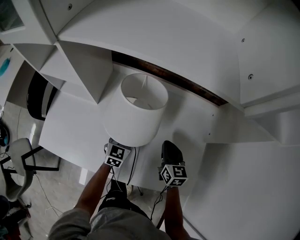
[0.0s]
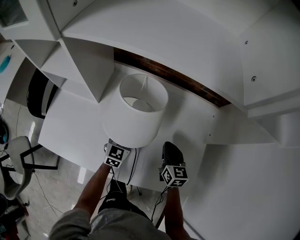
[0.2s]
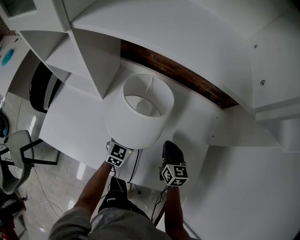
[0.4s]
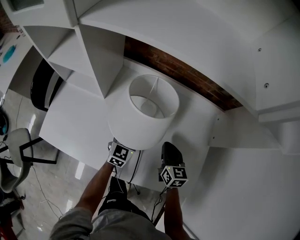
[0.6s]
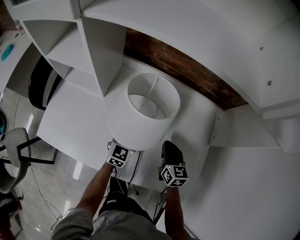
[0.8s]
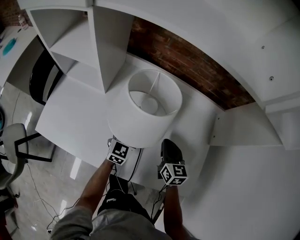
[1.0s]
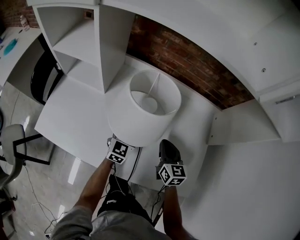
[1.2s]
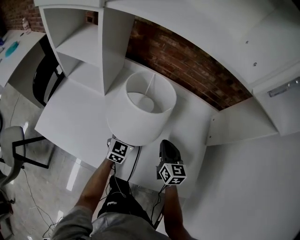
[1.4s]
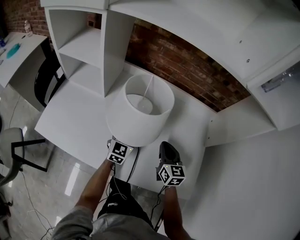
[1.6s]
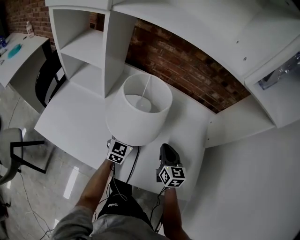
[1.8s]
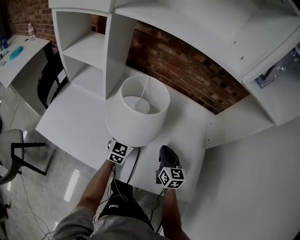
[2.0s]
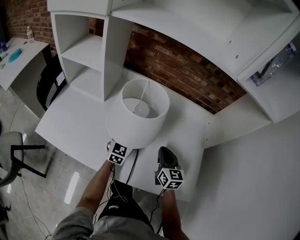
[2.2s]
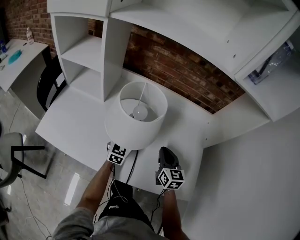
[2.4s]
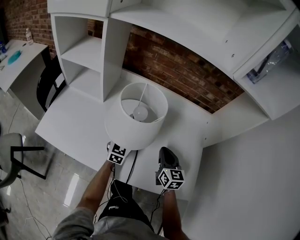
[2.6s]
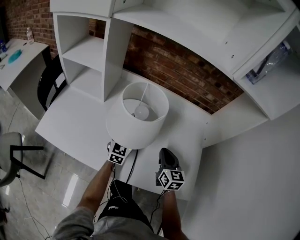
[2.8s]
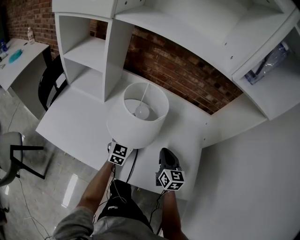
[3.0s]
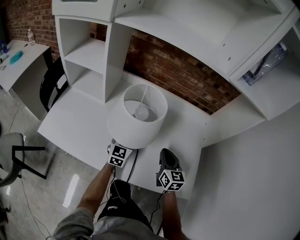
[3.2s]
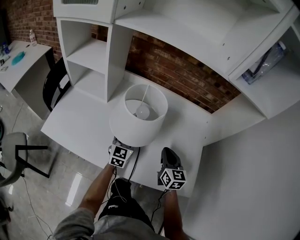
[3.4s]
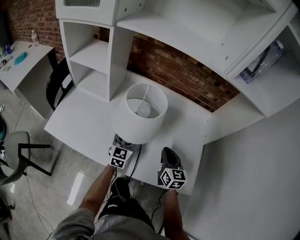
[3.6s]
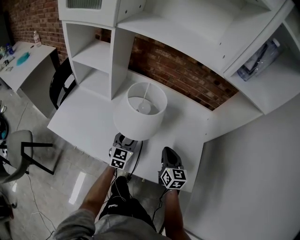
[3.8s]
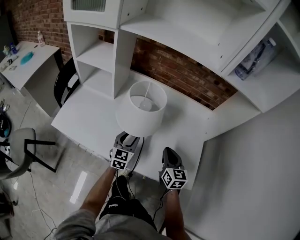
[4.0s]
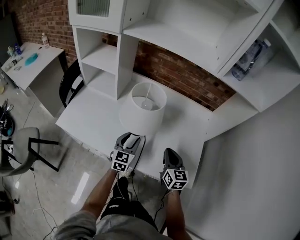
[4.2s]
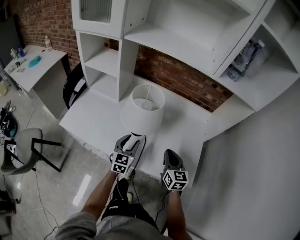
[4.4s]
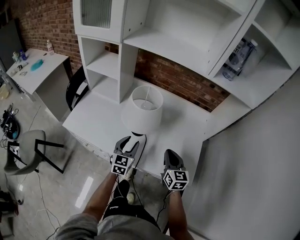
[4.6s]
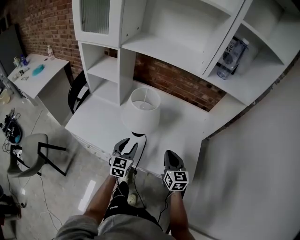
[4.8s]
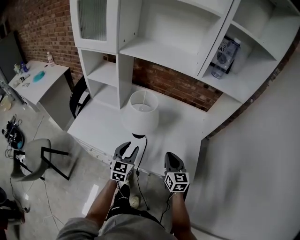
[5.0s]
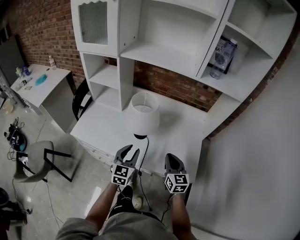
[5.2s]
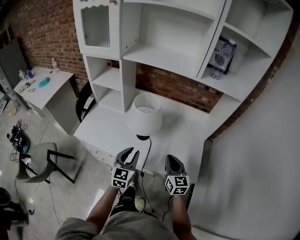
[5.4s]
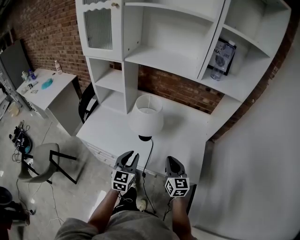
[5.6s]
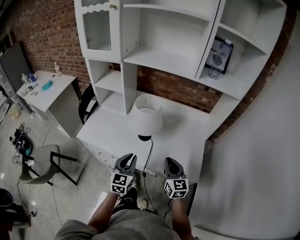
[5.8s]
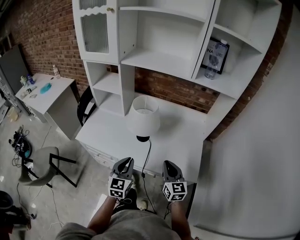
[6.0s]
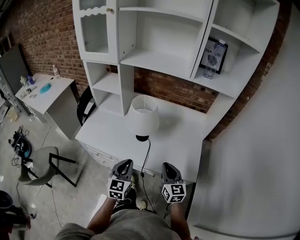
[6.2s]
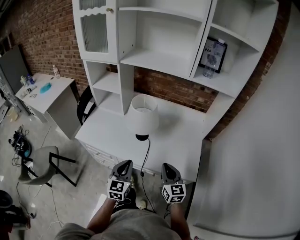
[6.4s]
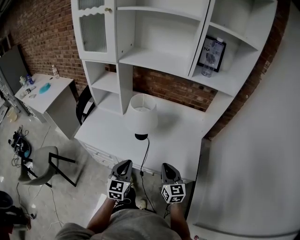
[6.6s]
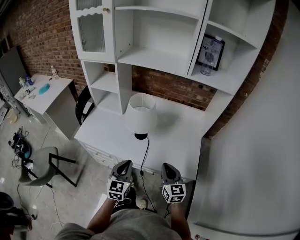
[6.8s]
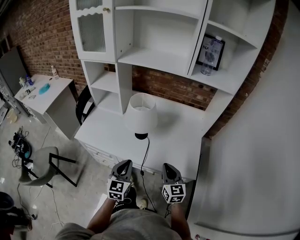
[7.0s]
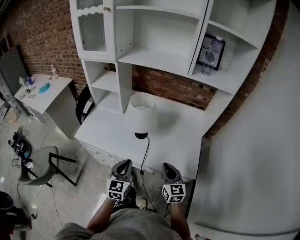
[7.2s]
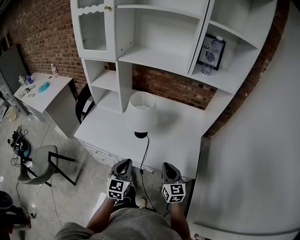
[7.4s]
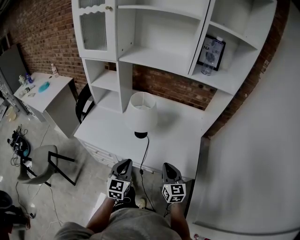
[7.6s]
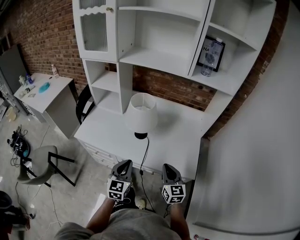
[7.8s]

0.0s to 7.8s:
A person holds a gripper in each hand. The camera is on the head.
0.0s to 1.6s: The right gripper moves about 5 cm.
1.6s to 3.2s: The grippers make only small movements.
3.2s to 4.6s: Both grippers move backward and upward, roughly 15 cm.
4.6s to 6.2s: Both grippers travel together backward and upward, about 15 cm. The left gripper closes.
6.2s to 7.8s: The grippers make only small movements.

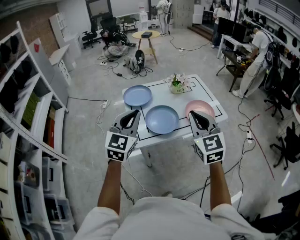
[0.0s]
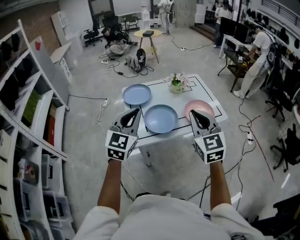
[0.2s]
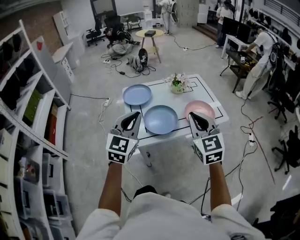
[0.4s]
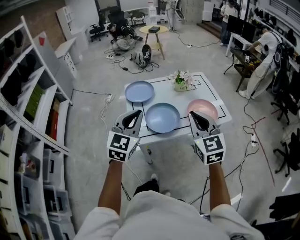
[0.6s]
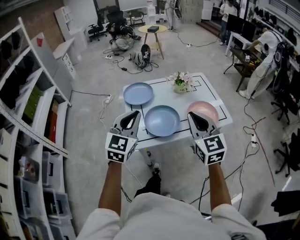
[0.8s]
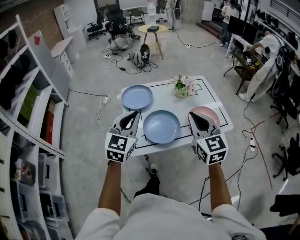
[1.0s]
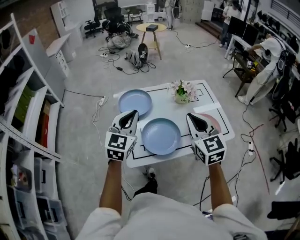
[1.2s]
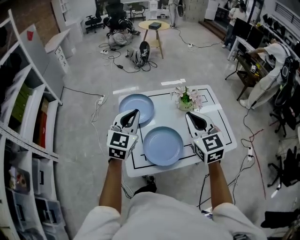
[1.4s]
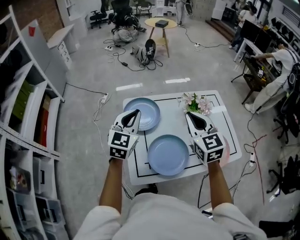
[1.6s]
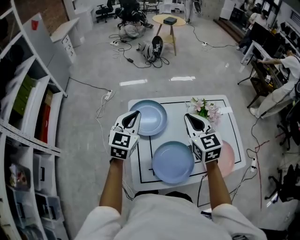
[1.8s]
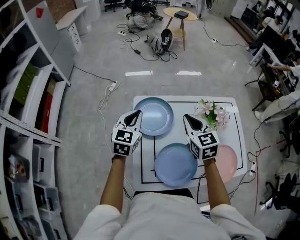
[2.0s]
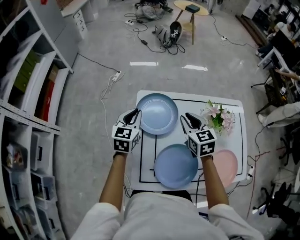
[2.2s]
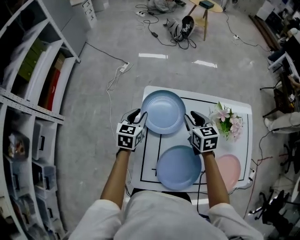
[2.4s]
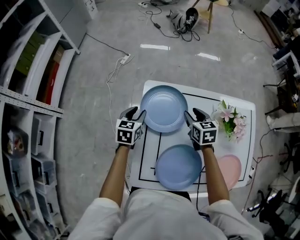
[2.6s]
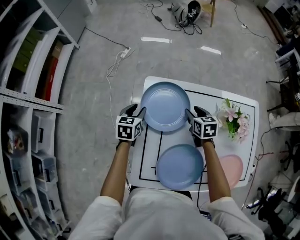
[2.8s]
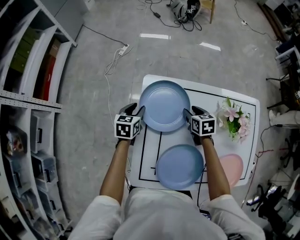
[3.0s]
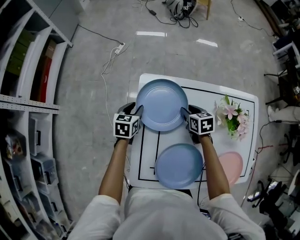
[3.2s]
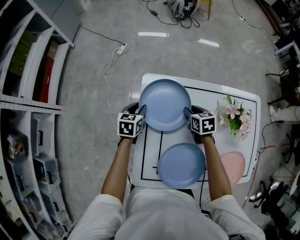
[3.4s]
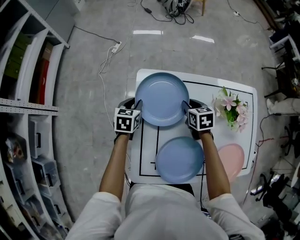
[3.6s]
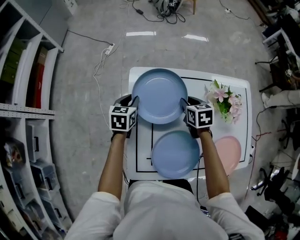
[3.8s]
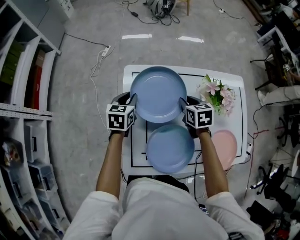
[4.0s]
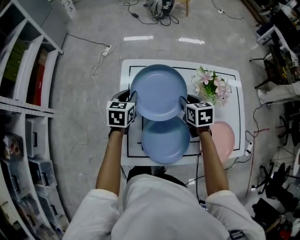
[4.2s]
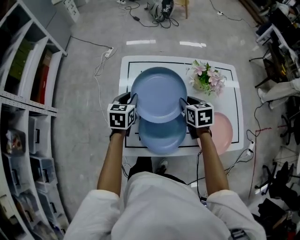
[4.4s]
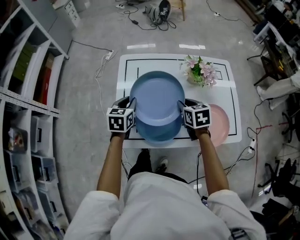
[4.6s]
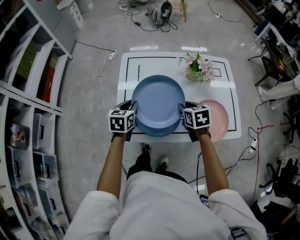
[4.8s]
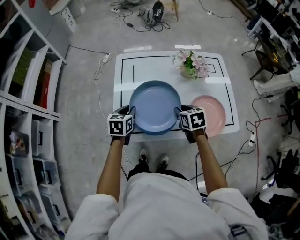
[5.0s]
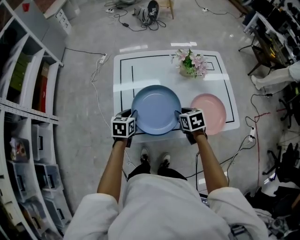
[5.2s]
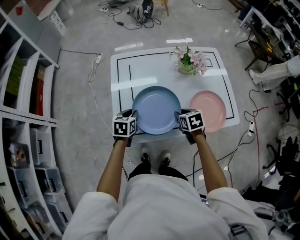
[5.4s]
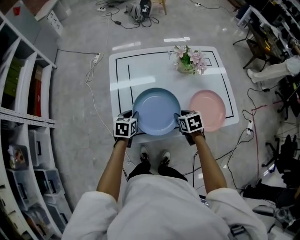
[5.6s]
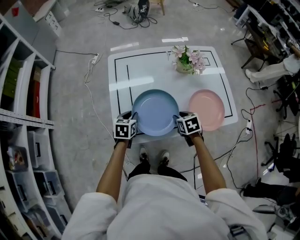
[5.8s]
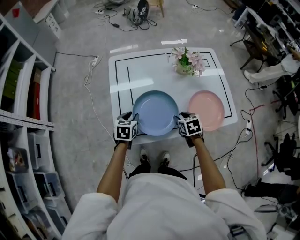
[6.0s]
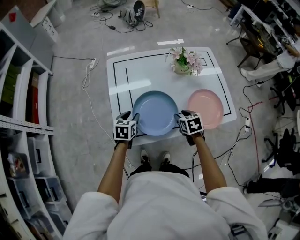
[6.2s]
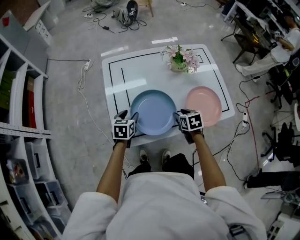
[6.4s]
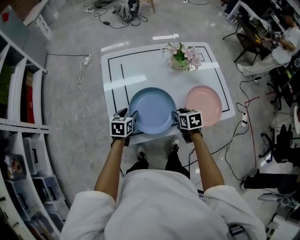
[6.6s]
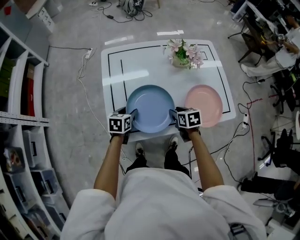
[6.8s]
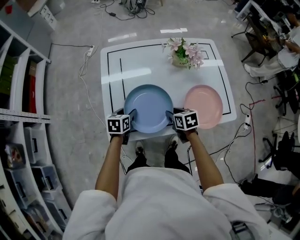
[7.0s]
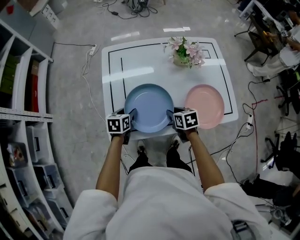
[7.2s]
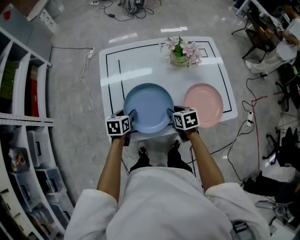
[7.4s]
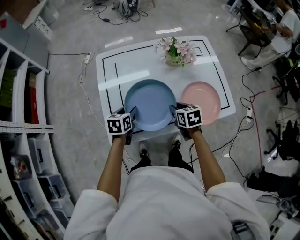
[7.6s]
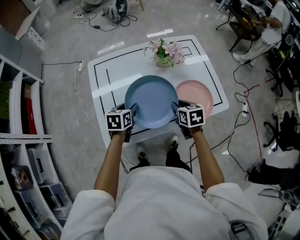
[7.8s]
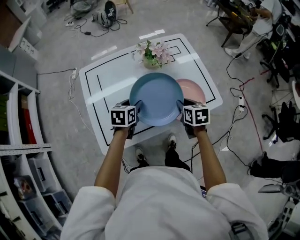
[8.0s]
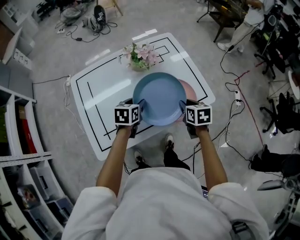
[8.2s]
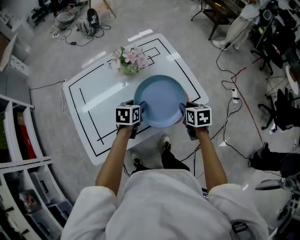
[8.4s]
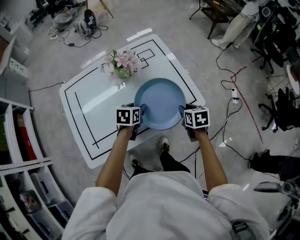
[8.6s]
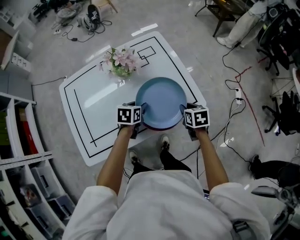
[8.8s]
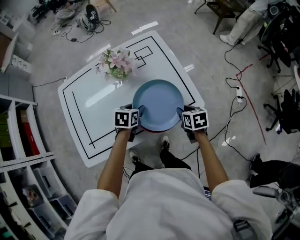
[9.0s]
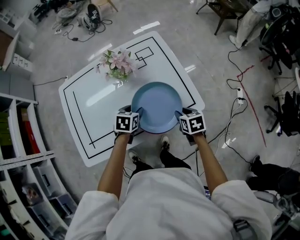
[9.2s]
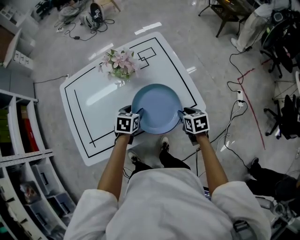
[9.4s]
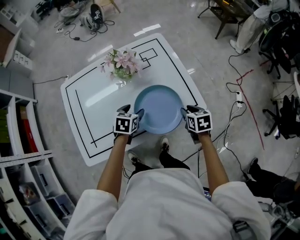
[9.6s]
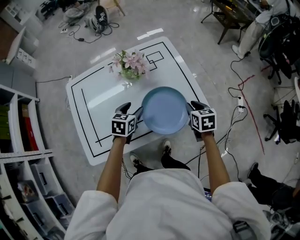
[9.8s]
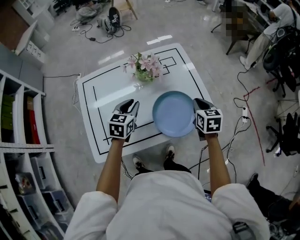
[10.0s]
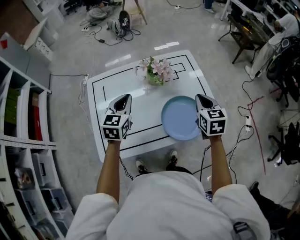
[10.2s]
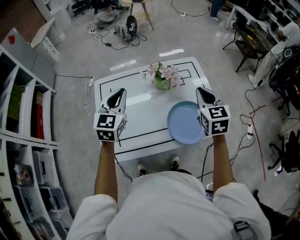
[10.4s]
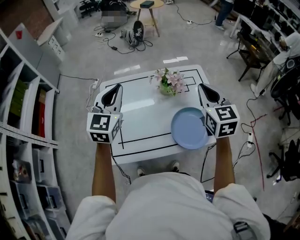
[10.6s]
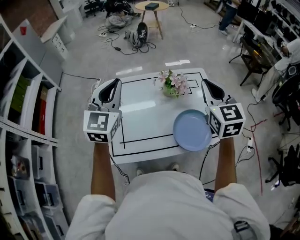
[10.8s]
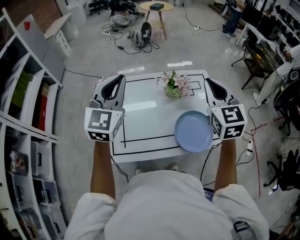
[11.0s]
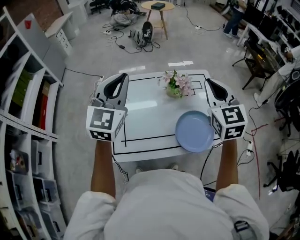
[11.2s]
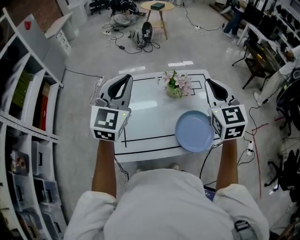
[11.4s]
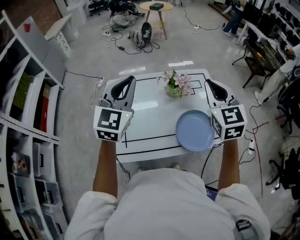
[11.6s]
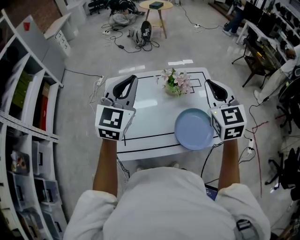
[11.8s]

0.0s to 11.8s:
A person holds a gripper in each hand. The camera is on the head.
0.0s to 1.4s: Both grippers move forward, about 30 cm.
1.4s to 3.0s: Both grippers travel together downward and forward, roughly 40 cm. The right gripper points its fingers some 40 degrees further downward, and opens. The left gripper tips its fingers downward by about 30 degrees, and opens.
3.0s to 4.4s: The two grippers go roughly 20 cm backward, upward and to the right. The right gripper closes up.
4.4s to 6.0s: The two grippers go approximately 20 cm backward and downward.
6.0s to 7.4s: The grippers make only small movements.
7.4s to 8.8s: The left gripper reaches about 10 cm upward, then returns, and rotates about 20 degrees. The right gripper reaches roughly 10 cm upward, then returns, and changes its angle by about 20 degrees.
8.8s to 10.4s: The grippers both shift upward and to the left by about 35 cm. The right gripper rotates about 40 degrees, and closes. Meanwhile the left gripper points its fingers approximately 40 degrees further upward, and closes up.
10.4s to 11.8s: The left gripper moves upward, roughly 10 cm. The right gripper heads upward and to the left, covering some 10 cm.

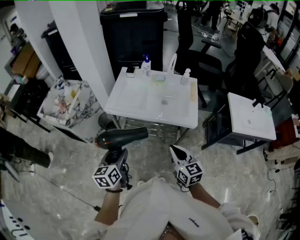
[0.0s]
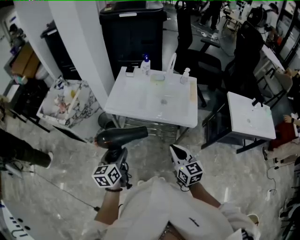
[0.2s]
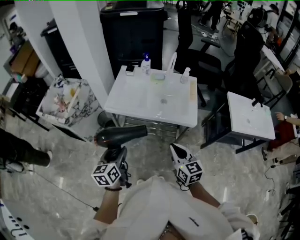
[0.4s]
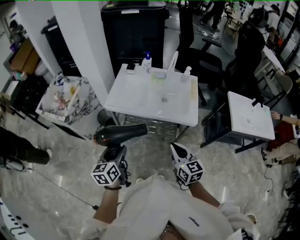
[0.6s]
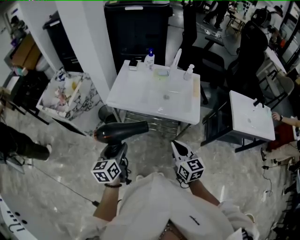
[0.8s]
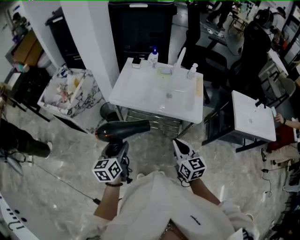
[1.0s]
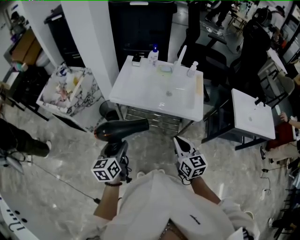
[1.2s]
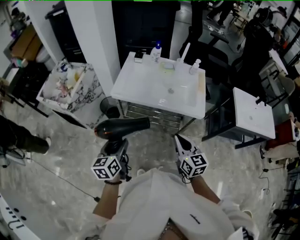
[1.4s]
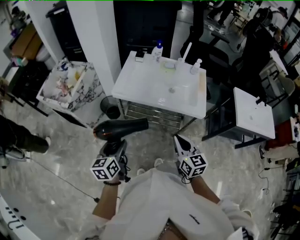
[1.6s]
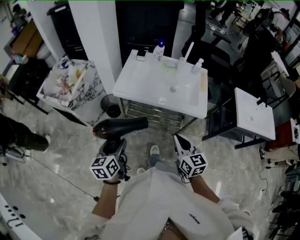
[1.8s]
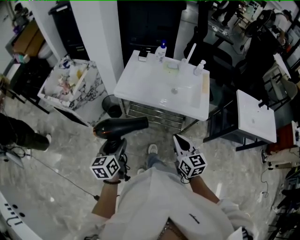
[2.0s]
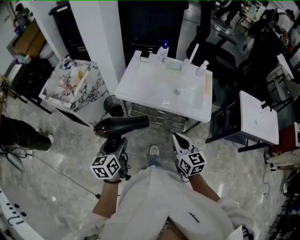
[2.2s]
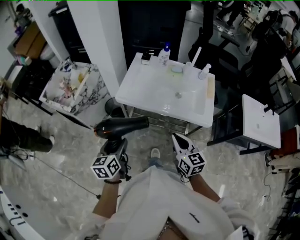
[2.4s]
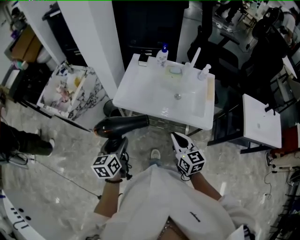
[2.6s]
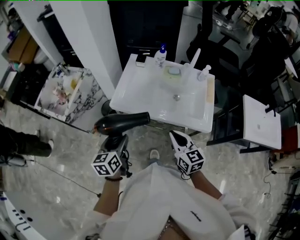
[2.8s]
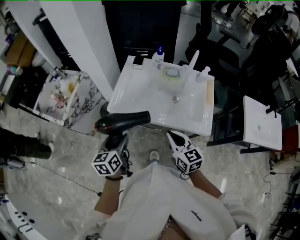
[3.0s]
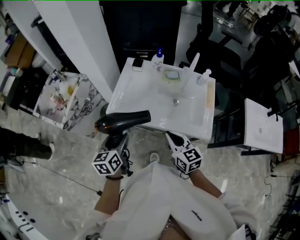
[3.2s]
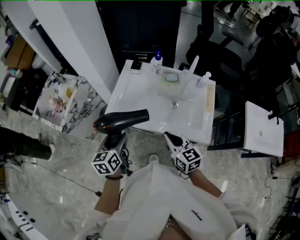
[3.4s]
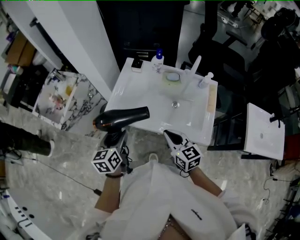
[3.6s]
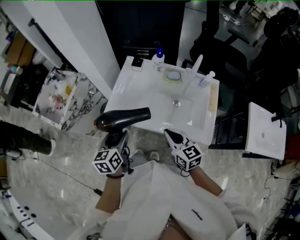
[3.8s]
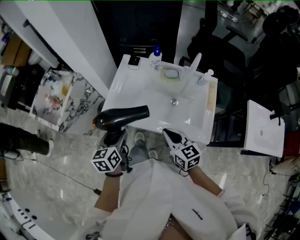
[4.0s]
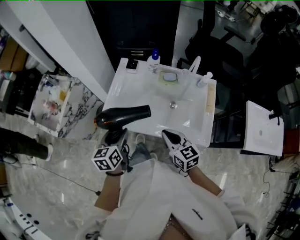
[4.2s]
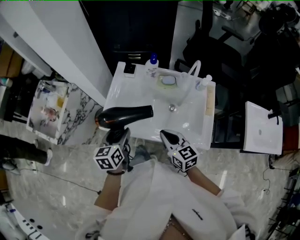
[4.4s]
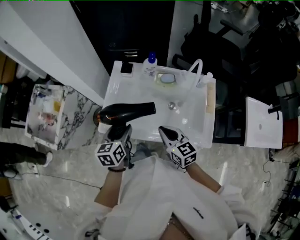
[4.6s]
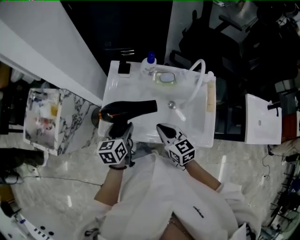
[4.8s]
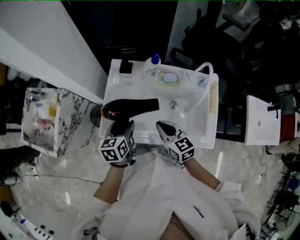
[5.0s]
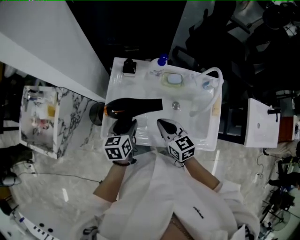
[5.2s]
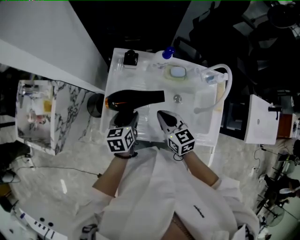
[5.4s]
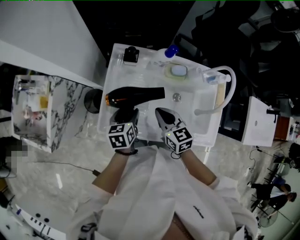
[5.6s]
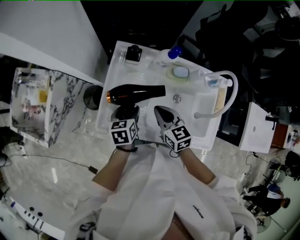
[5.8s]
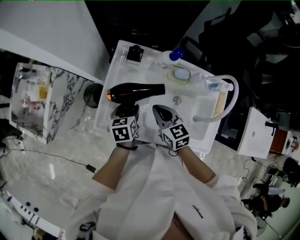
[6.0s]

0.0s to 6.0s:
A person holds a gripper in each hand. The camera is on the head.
0.0s to 1.6s: Both grippers travel together to the left, roughly 5 cm.
1.6s to 3.0s: The grippers both shift forward by roughly 20 cm.
3.0s to 4.4s: The right gripper goes some 15 cm forward. The left gripper shifts some 15 cm forward and to the right.
4.4s to 6.0s: Both grippers travel together forward and downward, about 20 cm. The left gripper rotates some 20 degrees.
